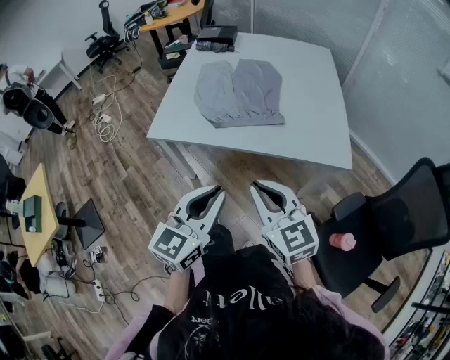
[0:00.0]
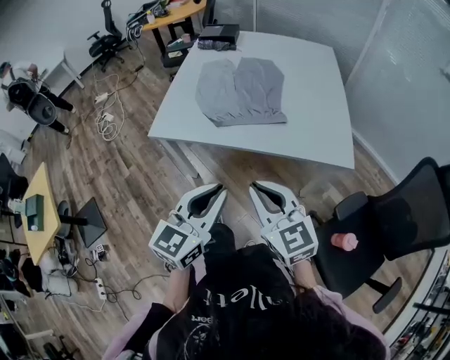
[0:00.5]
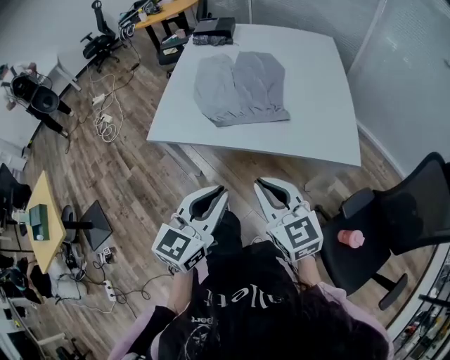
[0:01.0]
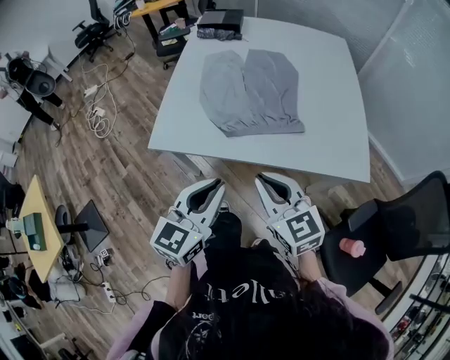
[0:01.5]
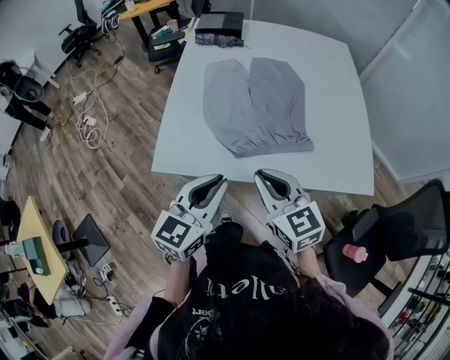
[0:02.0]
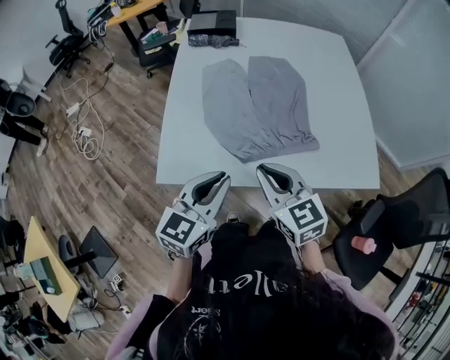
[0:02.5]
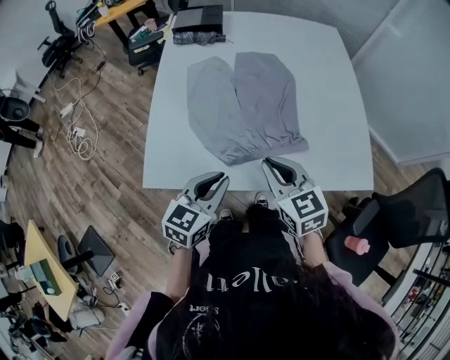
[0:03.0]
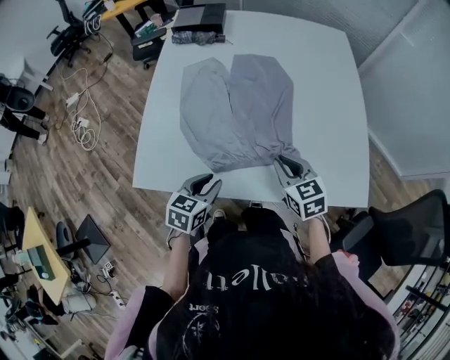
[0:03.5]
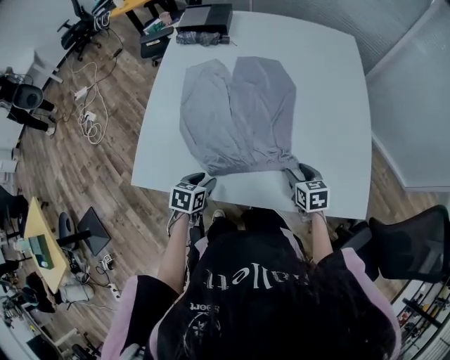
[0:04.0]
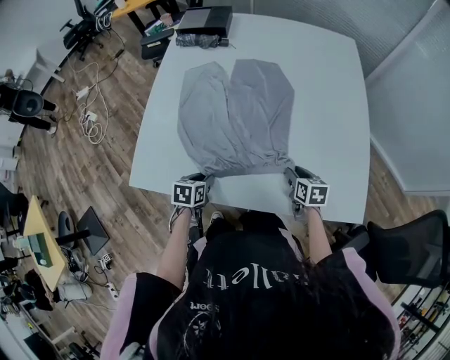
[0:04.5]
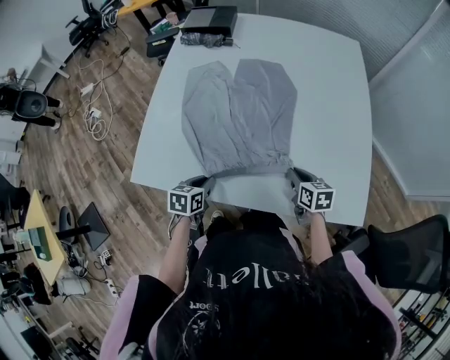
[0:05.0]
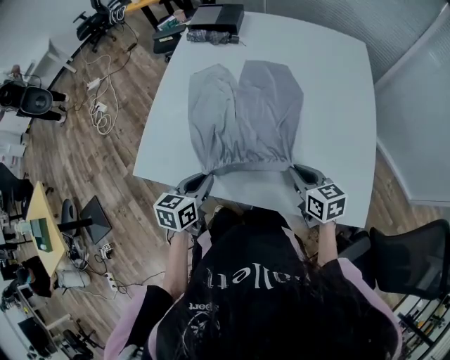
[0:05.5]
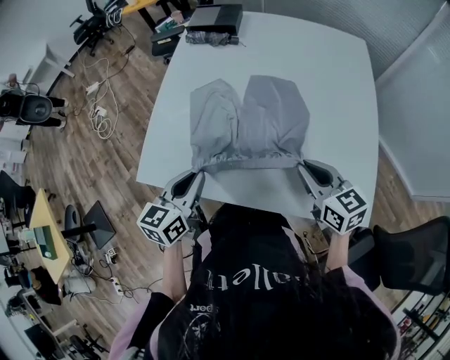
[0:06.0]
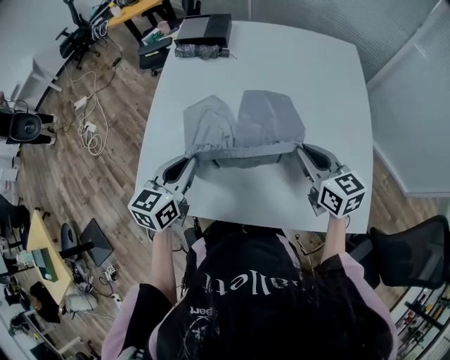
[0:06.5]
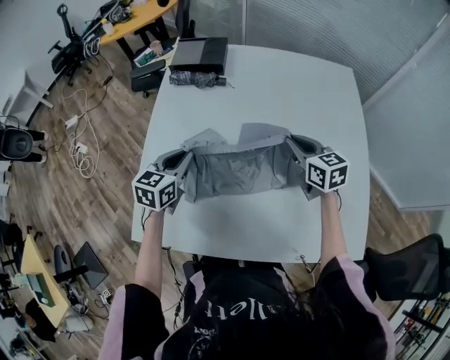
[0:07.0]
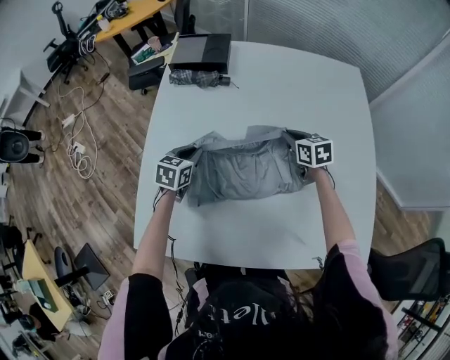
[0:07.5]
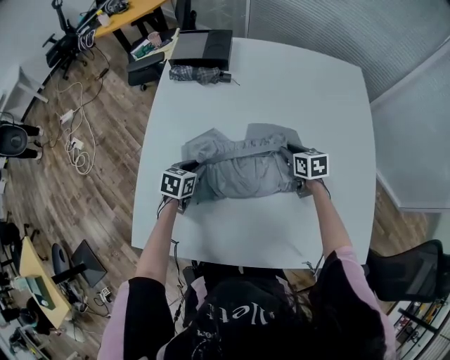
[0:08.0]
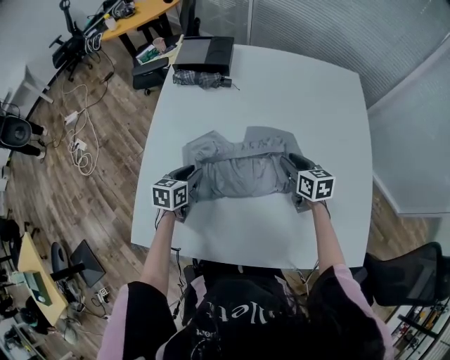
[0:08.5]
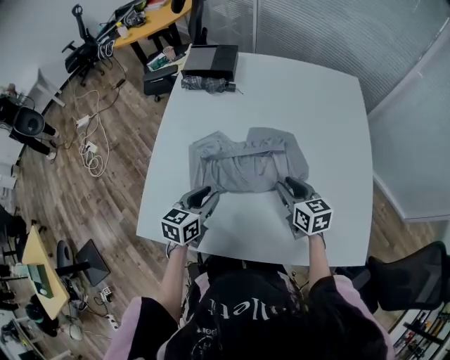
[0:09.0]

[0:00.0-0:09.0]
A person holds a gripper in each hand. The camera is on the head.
0:00.0 to 0:02.0: Both grippers travel together forward and to the left, about 25 cm.
0:02.0 to 0:04.5: The right gripper travels downward, to the right and forward by about 40 cm, swivels approximately 40 degrees, and opens its fingers. The left gripper shifts roughly 30 cm downward and forward, and tips its fingers downward by some 40 degrees.
0:04.5 to 0:07.0: The two grippers go roughly 30 cm forward and upward. The left gripper rotates roughly 30 degrees. The right gripper changes its angle by some 30 degrees, and closes.
0:07.0 to 0:09.0: The right gripper moves backward and downward, some 15 cm, and opens up. Meanwhile the left gripper goes some 10 cm backward, and opens.

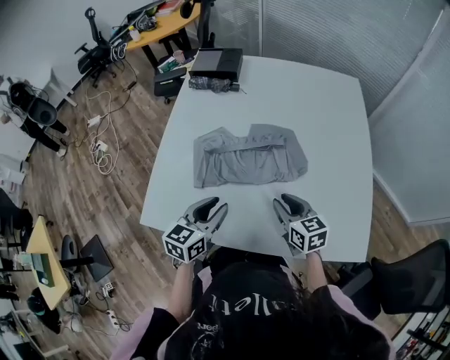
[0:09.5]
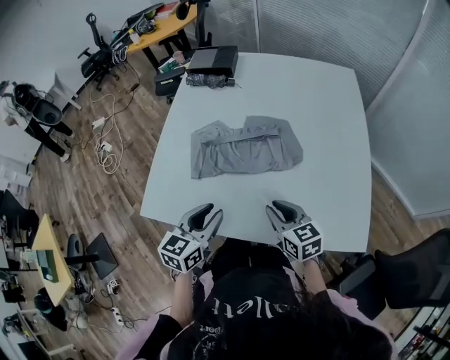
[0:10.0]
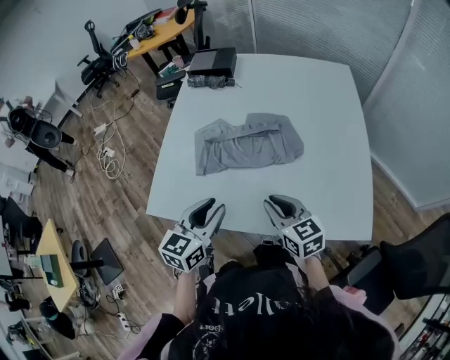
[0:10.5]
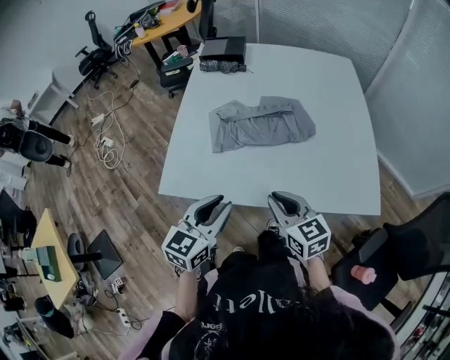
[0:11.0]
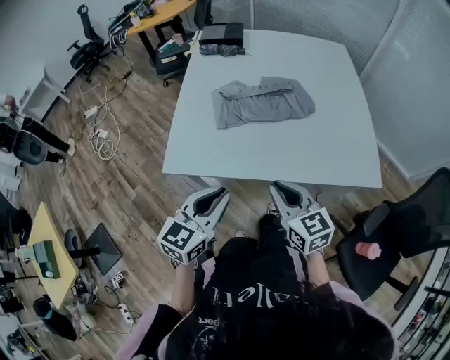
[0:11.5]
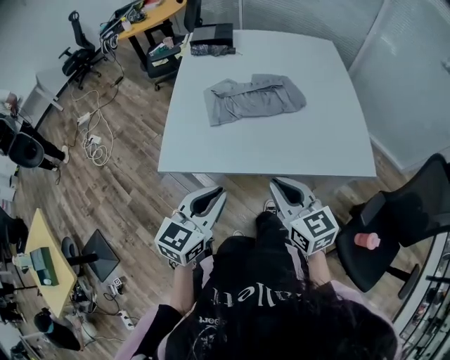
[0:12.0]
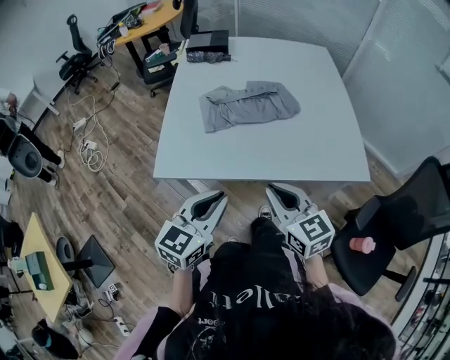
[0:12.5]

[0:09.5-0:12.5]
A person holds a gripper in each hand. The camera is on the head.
0:09.5 to 0:11.0: The left gripper goes roughly 20 cm backward and upward. The right gripper heads backward, to the left and upward, covering approximately 20 cm.
0:11.0 to 0:12.5: Both grippers move backward, about 10 cm.

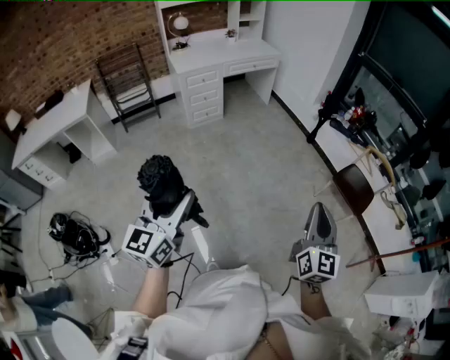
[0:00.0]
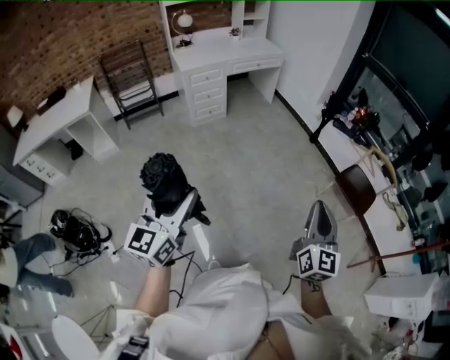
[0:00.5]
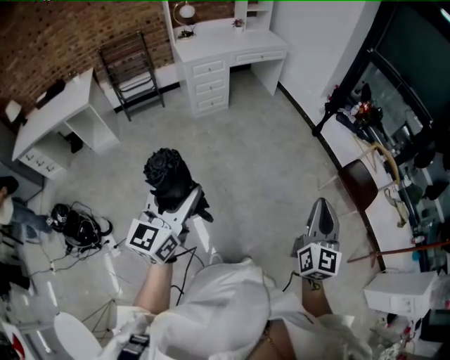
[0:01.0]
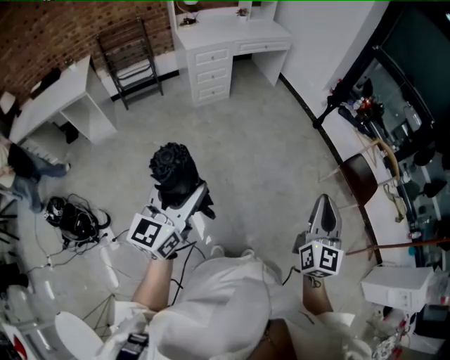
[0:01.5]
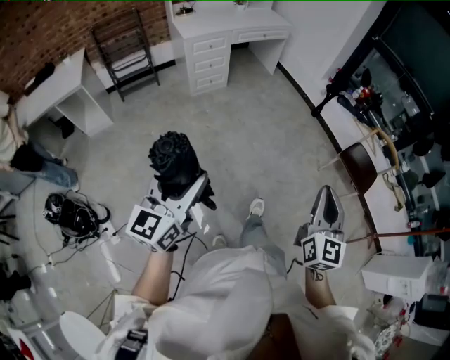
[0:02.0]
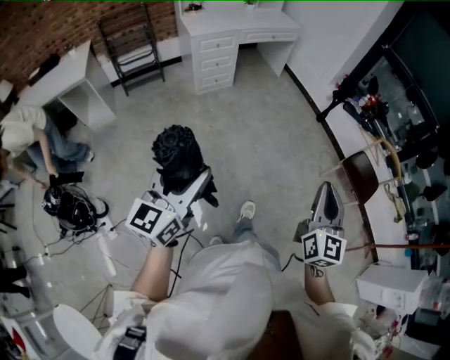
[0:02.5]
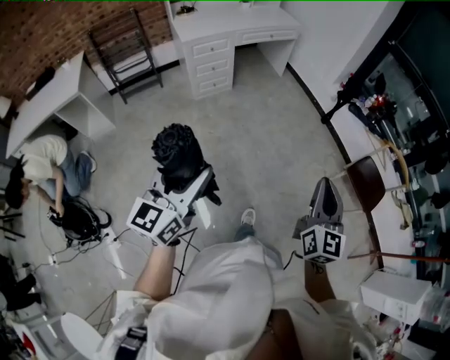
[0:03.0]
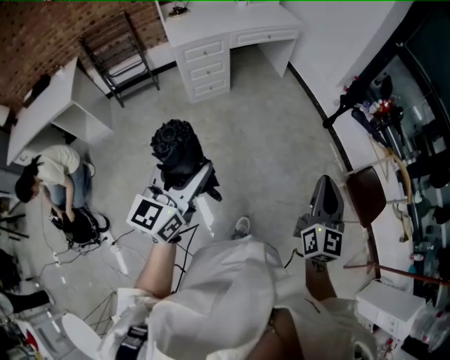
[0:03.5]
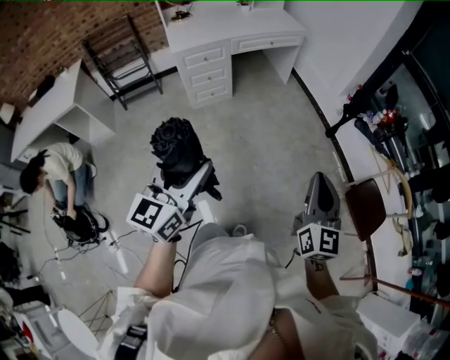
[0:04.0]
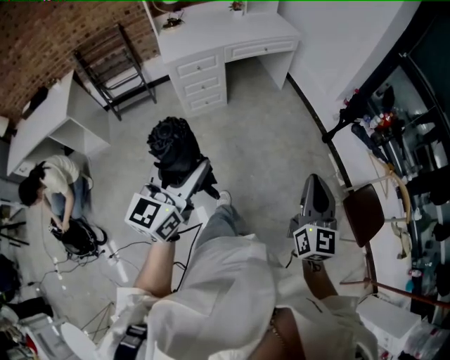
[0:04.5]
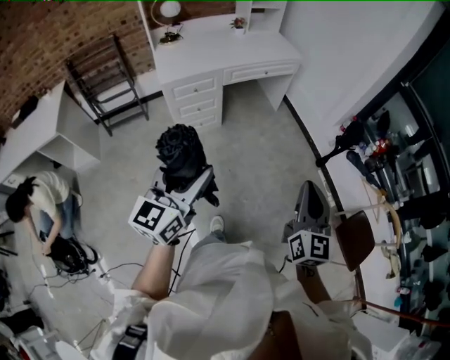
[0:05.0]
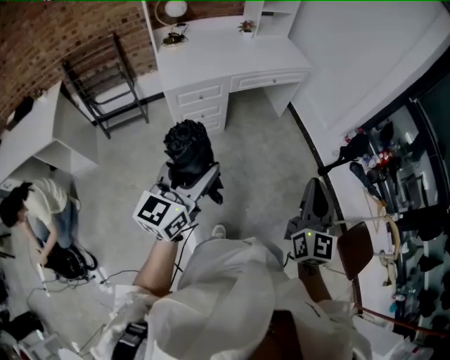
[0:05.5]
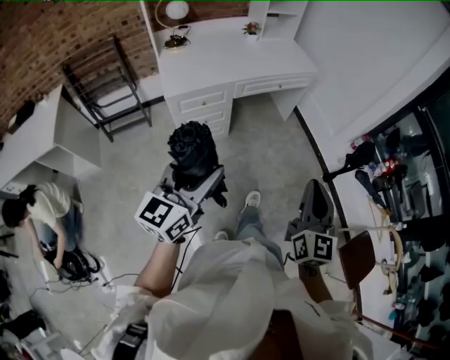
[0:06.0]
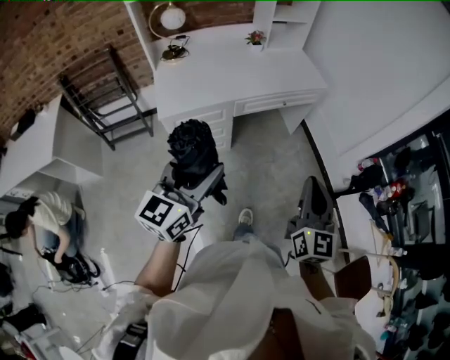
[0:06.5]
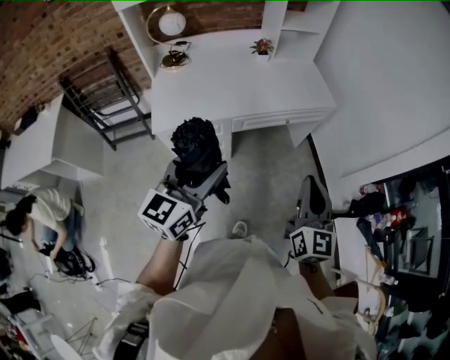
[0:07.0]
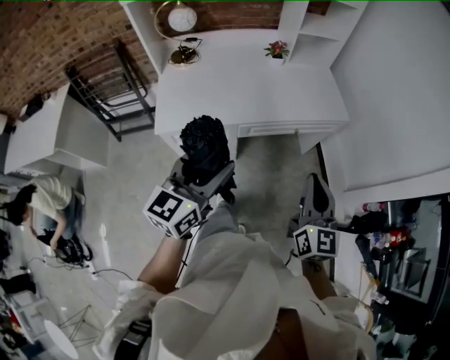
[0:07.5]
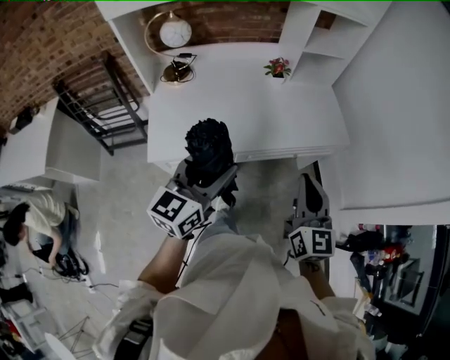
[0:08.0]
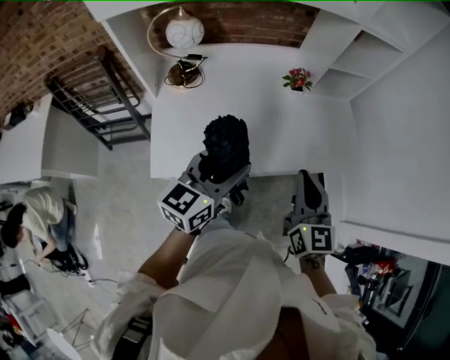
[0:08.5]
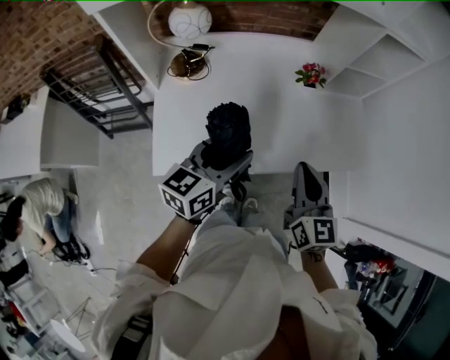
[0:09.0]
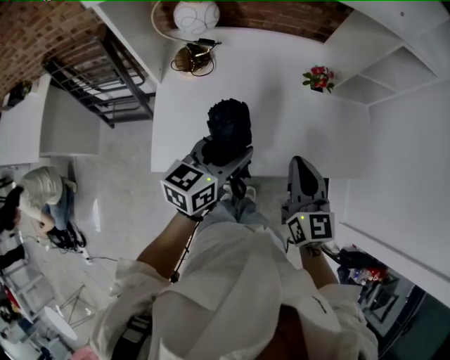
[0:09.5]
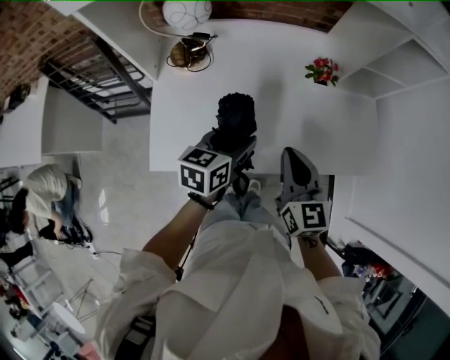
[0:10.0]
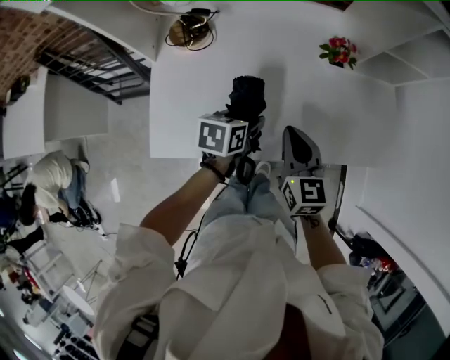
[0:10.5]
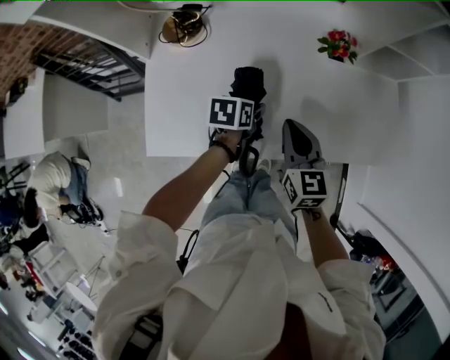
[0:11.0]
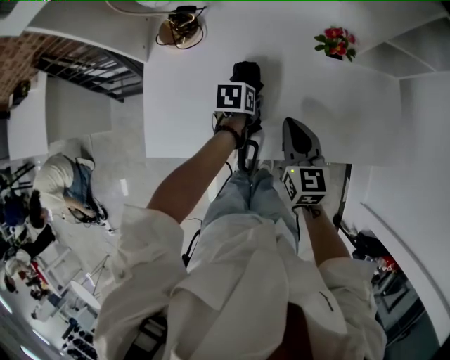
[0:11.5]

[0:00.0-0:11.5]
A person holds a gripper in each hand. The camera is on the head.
0:00.0 to 0:02.0: Both grippers move to the left, some 10 cm.
0:02.0 to 0:04.0: Both grippers move forward, some 40 cm.
0:04.0 to 0:06.0: Both grippers move forward and to the left, some 40 cm.
0:06.0 to 0:07.5: Both grippers travel together forward, roughly 40 cm.
0:07.5 to 0:09.5: The left gripper goes approximately 35 cm forward. Meanwhile the right gripper moves forward and to the left, approximately 40 cm, and changes its angle by roughly 20 degrees.
0:09.5 to 0:11.5: The left gripper moves downward and forward, some 30 cm, and angles its fingers downward, by roughly 50 degrees, while the right gripper shifts roughly 20 cm downward and forward.

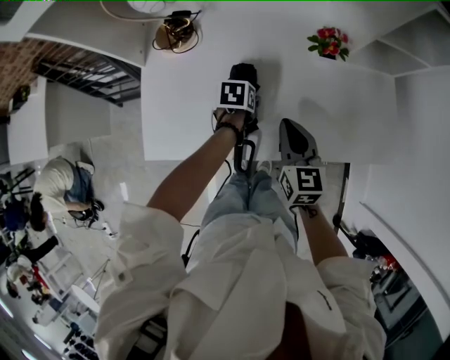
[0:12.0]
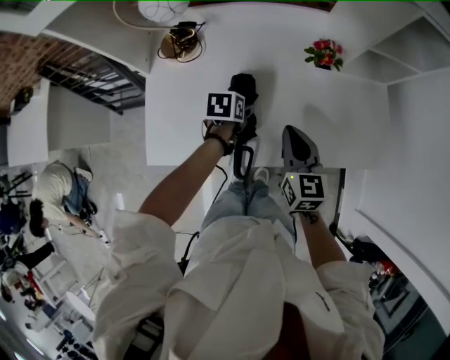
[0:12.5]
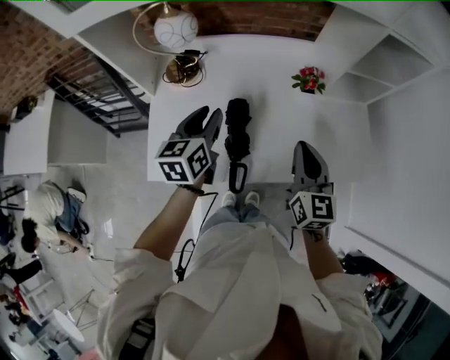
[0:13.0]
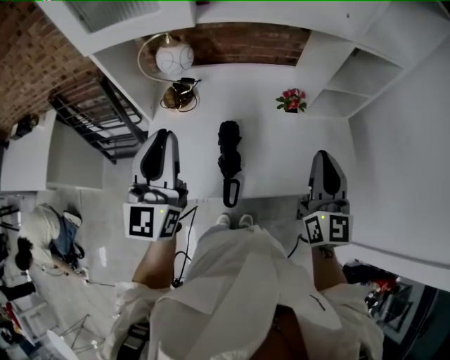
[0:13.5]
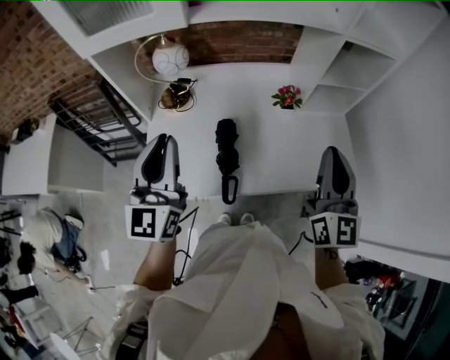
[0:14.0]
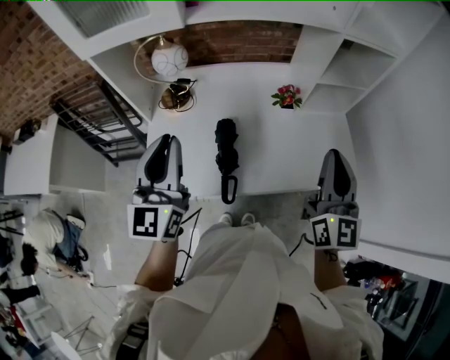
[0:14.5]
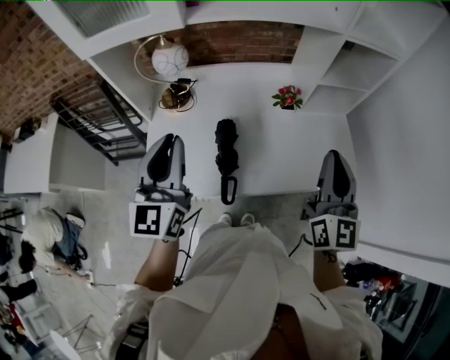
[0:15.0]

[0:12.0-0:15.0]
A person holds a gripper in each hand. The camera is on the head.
0:12.0 to 0:13.5: The right gripper goes roughly 30 cm upward, and turns by about 30 degrees. The left gripper shifts about 50 cm upward, points its fingers approximately 80 degrees further upward, and closes its fingers.
0:13.5 to 0:15.0: The right gripper shifts by roughly 5 cm.
